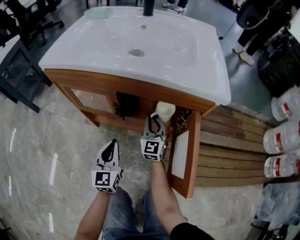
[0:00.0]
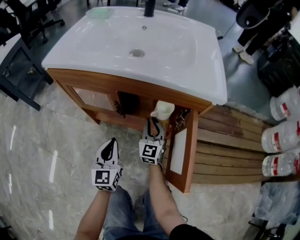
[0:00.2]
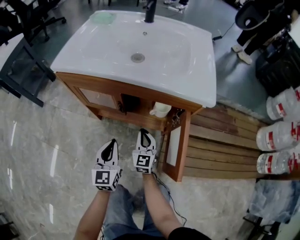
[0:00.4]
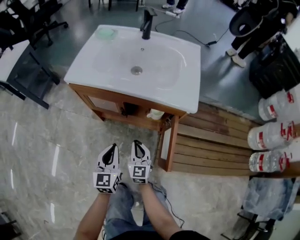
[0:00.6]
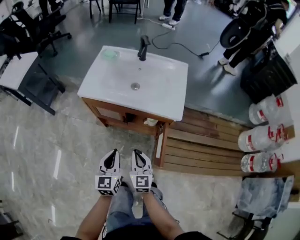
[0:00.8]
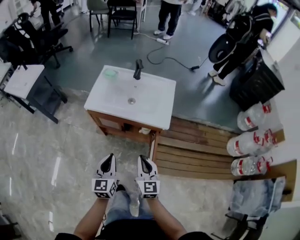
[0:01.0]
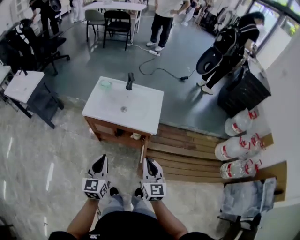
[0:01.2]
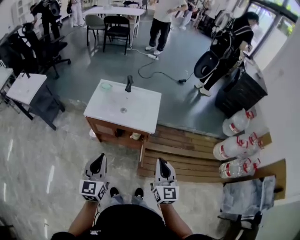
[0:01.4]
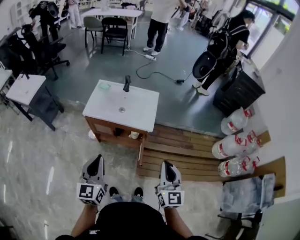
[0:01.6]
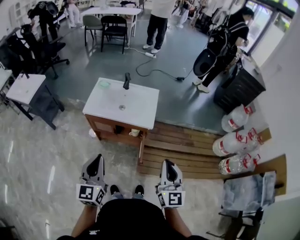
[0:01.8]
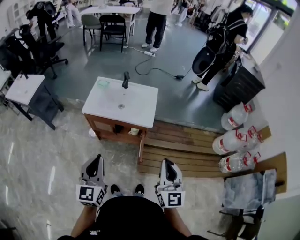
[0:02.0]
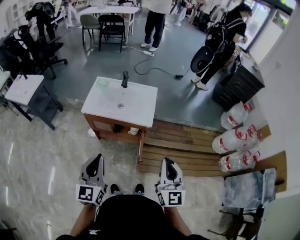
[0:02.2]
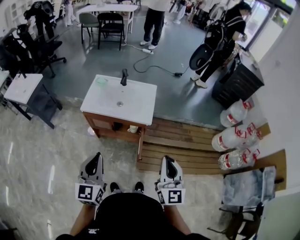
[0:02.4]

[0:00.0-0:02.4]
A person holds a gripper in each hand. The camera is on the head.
0:00.0 to 0:01.2: The left gripper is displaced upward by approximately 50 cm. Meanwhile the right gripper moves upward and backward, approximately 60 cm.
0:01.2 to 0:02.4: The right gripper heads upward, backward and to the right, covering roughly 20 cm; the left gripper travels upward and backward by some 15 cm.

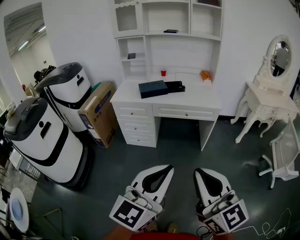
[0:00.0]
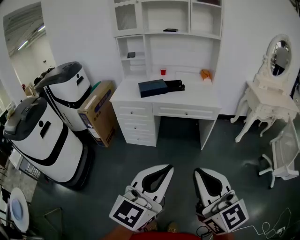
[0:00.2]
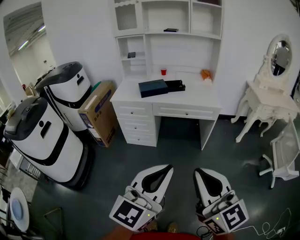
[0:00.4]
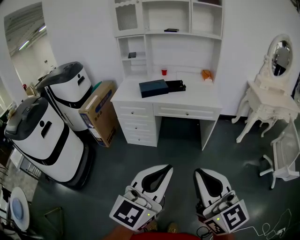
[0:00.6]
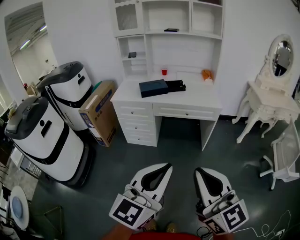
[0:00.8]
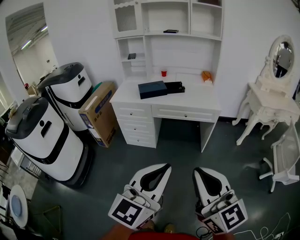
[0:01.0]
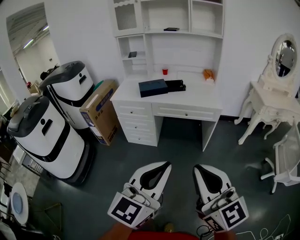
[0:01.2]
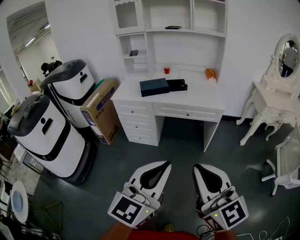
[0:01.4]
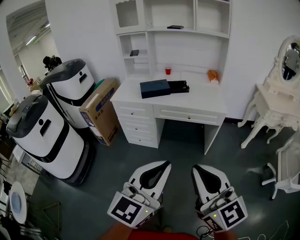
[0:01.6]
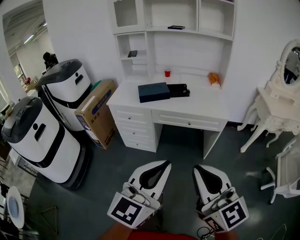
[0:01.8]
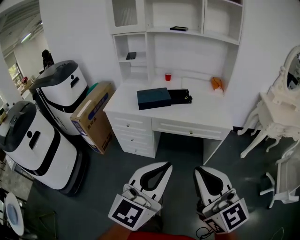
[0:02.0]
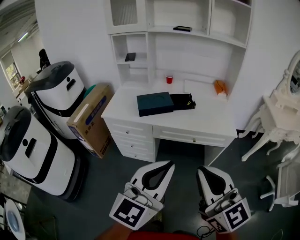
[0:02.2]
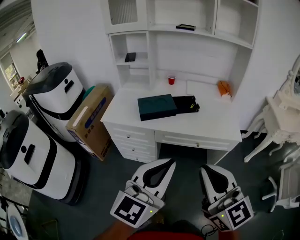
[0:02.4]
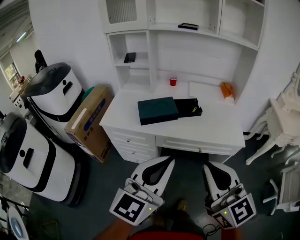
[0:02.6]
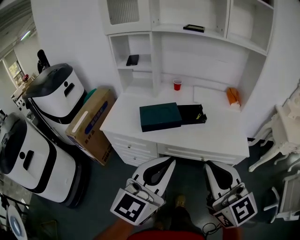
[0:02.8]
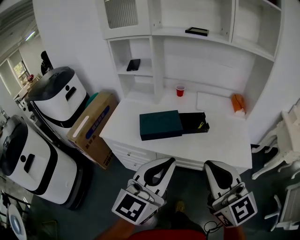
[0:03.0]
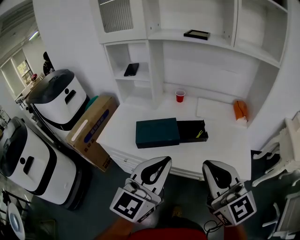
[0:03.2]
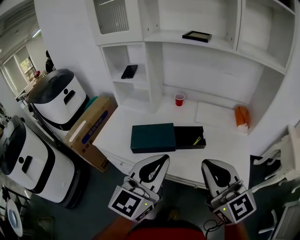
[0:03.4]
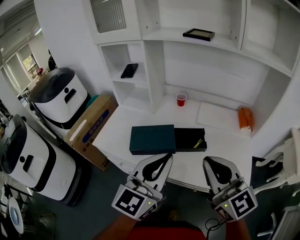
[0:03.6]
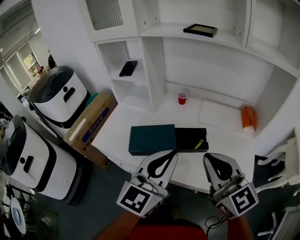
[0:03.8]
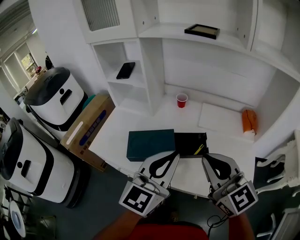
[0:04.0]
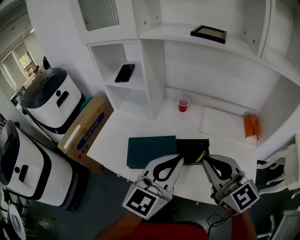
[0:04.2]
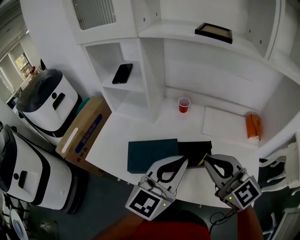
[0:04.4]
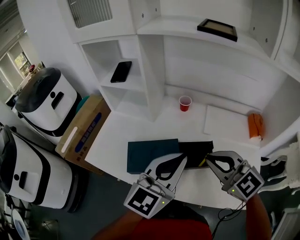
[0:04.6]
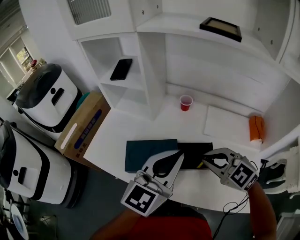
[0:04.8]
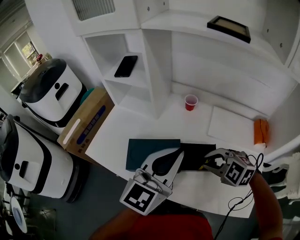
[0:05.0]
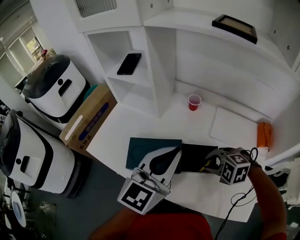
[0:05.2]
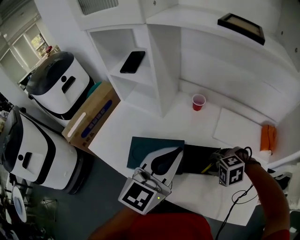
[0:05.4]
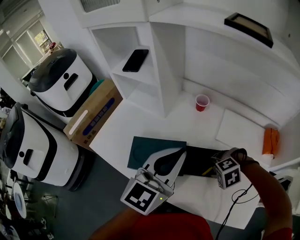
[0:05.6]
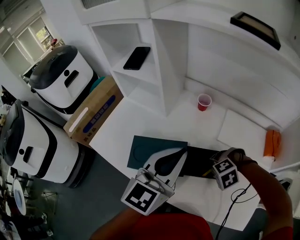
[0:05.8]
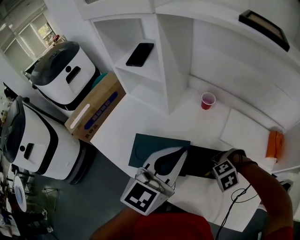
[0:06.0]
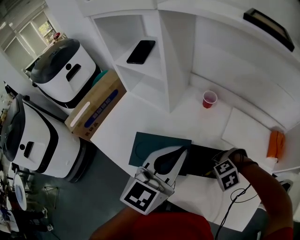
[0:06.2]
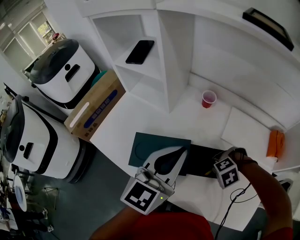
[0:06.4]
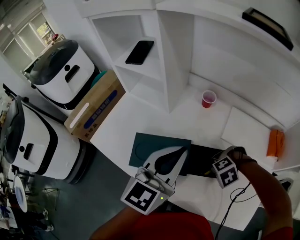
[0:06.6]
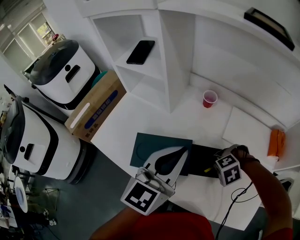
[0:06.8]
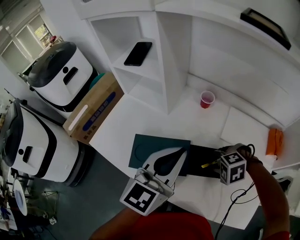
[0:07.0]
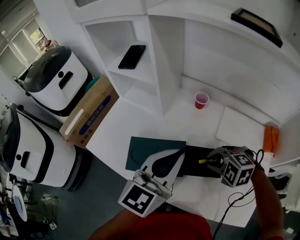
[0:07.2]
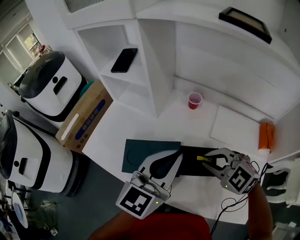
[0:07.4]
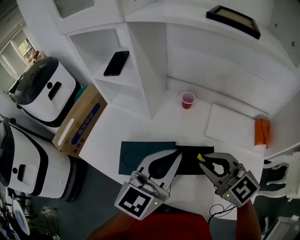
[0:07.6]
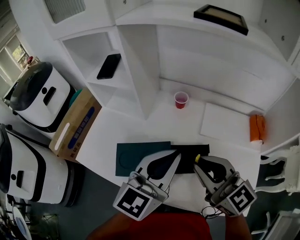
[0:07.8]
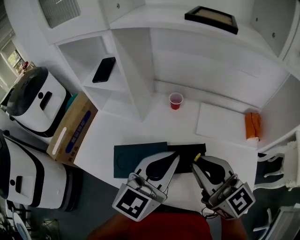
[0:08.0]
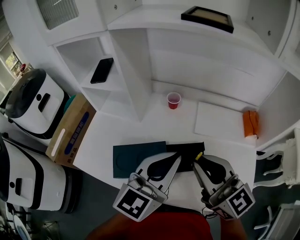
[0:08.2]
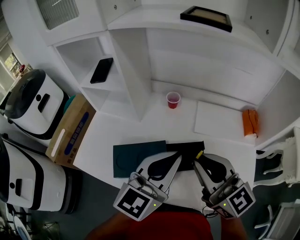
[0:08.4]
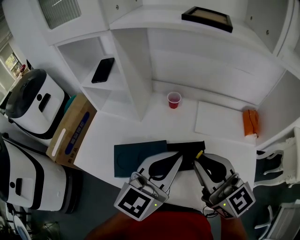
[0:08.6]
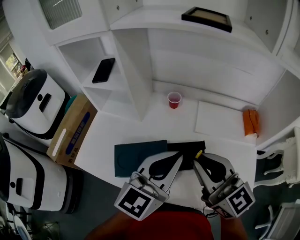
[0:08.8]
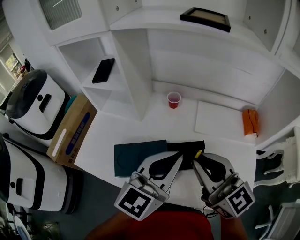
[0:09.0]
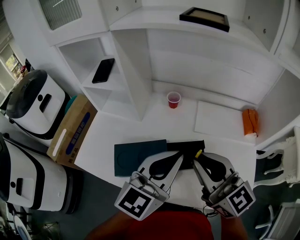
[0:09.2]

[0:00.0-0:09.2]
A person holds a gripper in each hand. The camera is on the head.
0:00.0 to 0:01.6: Both grippers travel together forward, approximately 10 cm.
0:01.6 to 0:03.0: The pair of grippers is taken forward, approximately 40 cm.
0:03.0 to 0:04.6: The grippers both shift forward by some 30 cm. The right gripper swivels approximately 30 degrees.
0:04.6 to 0:06.2: The right gripper is displaced downward by roughly 25 cm, tilts its fingers some 60 degrees downward, and opens its fingers; the left gripper ends up some 10 cm from where it was.
0:06.2 to 0:07.6: The right gripper is displaced upward by some 25 cm, and tips its fingers upward by roughly 60 degrees.
0:07.6 to 0:09.2: The right gripper shifts about 5 cm upward, and rotates approximately 30 degrees.

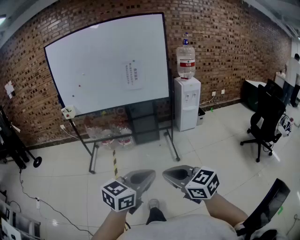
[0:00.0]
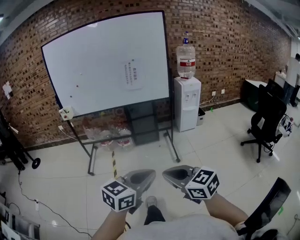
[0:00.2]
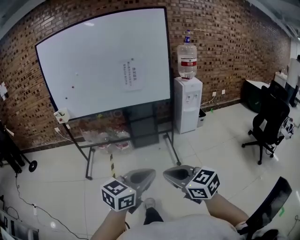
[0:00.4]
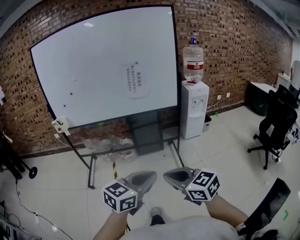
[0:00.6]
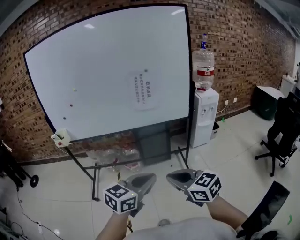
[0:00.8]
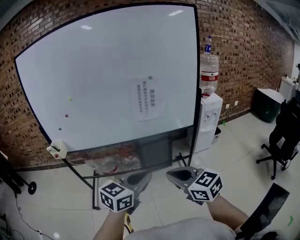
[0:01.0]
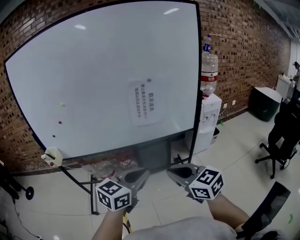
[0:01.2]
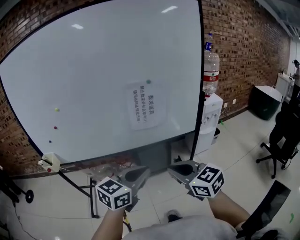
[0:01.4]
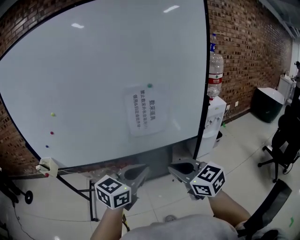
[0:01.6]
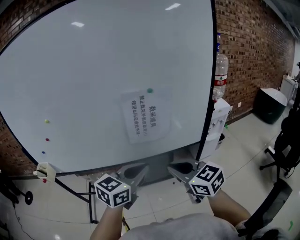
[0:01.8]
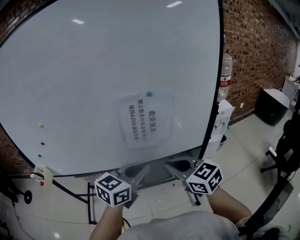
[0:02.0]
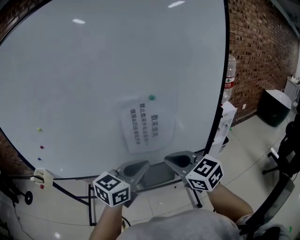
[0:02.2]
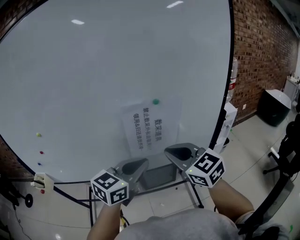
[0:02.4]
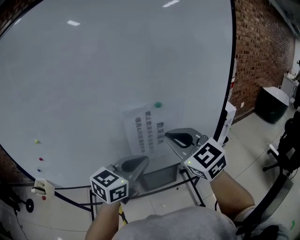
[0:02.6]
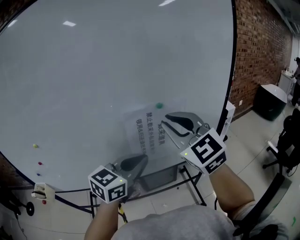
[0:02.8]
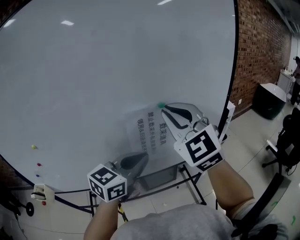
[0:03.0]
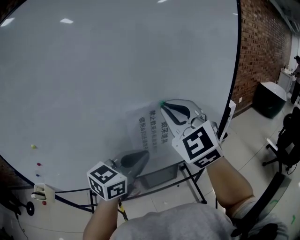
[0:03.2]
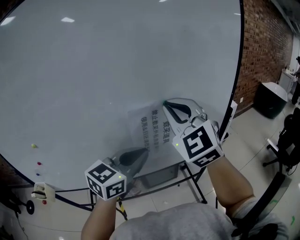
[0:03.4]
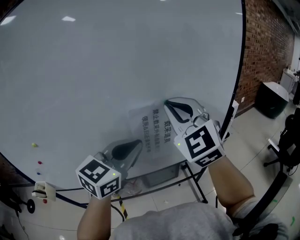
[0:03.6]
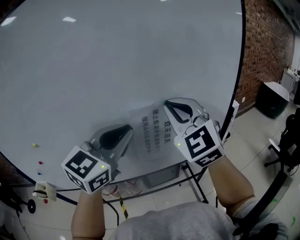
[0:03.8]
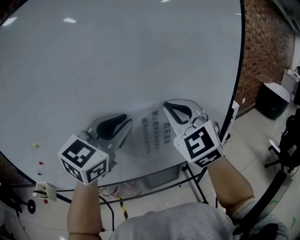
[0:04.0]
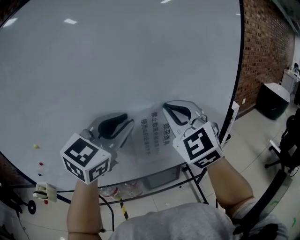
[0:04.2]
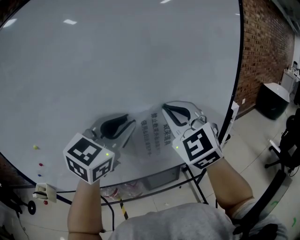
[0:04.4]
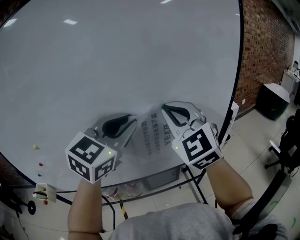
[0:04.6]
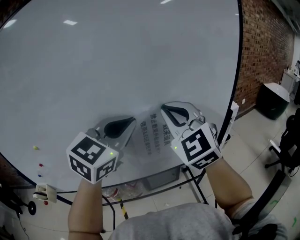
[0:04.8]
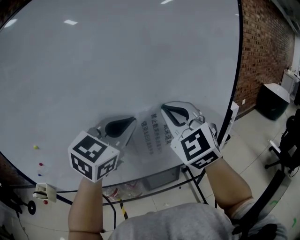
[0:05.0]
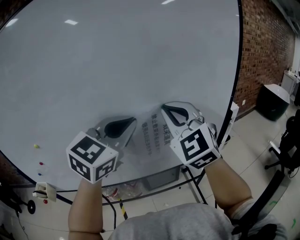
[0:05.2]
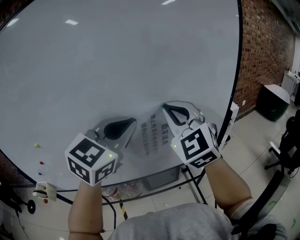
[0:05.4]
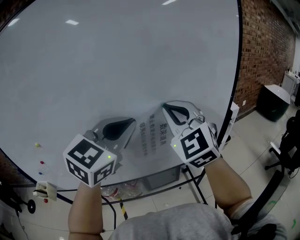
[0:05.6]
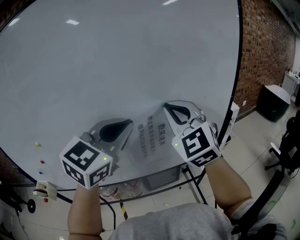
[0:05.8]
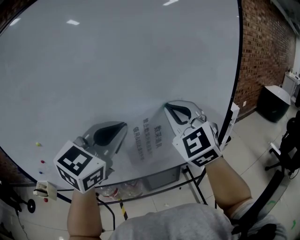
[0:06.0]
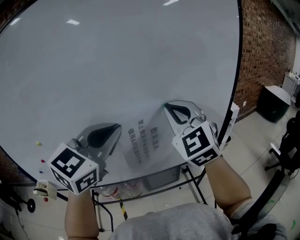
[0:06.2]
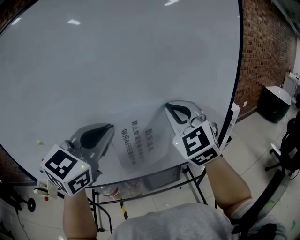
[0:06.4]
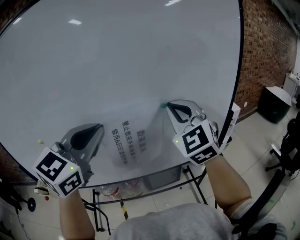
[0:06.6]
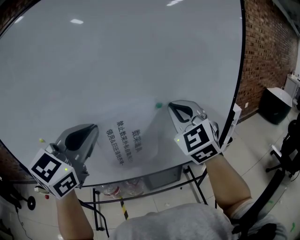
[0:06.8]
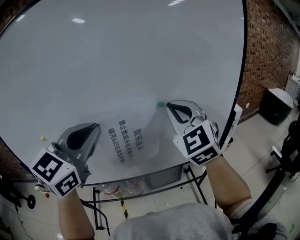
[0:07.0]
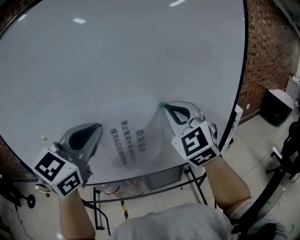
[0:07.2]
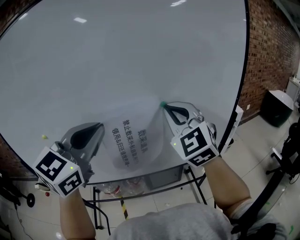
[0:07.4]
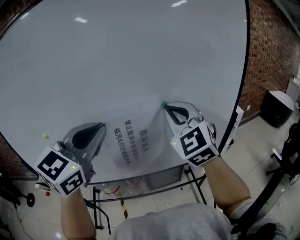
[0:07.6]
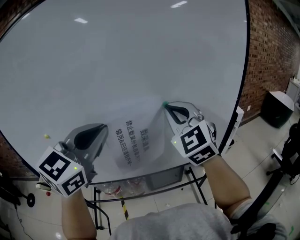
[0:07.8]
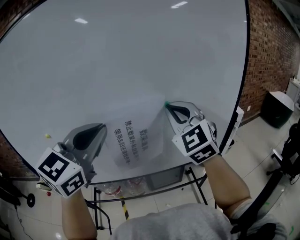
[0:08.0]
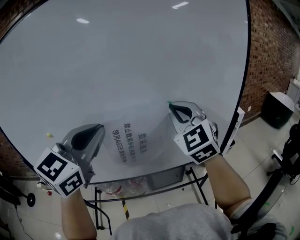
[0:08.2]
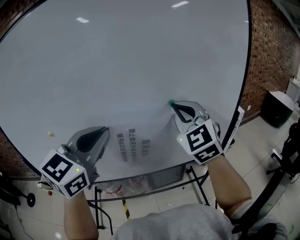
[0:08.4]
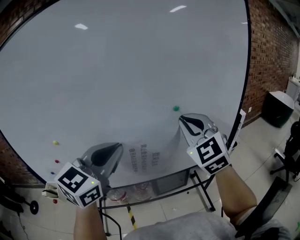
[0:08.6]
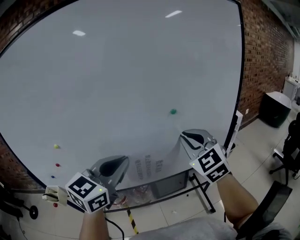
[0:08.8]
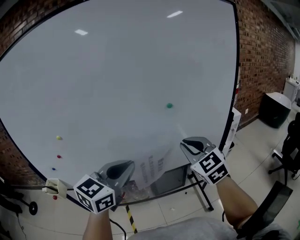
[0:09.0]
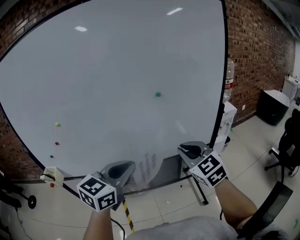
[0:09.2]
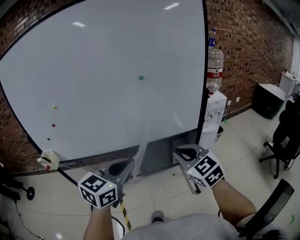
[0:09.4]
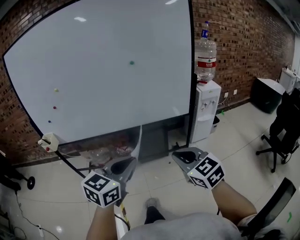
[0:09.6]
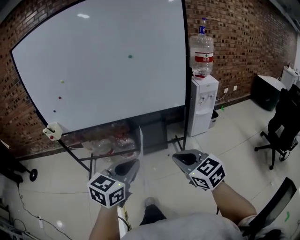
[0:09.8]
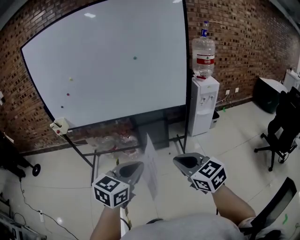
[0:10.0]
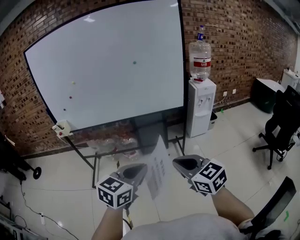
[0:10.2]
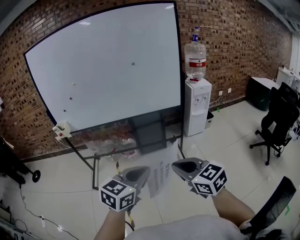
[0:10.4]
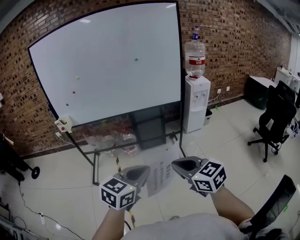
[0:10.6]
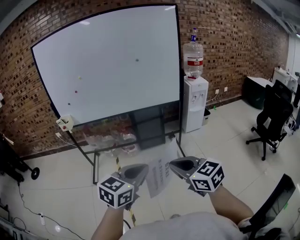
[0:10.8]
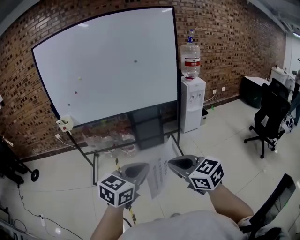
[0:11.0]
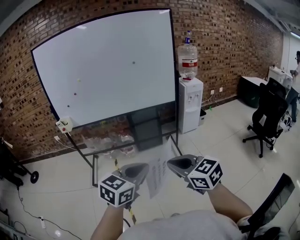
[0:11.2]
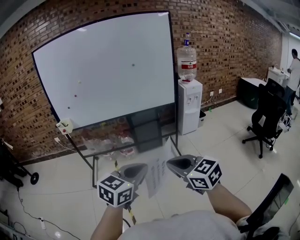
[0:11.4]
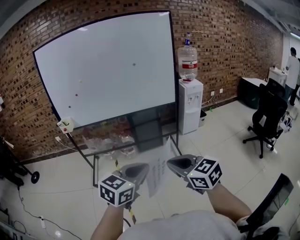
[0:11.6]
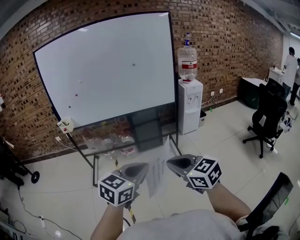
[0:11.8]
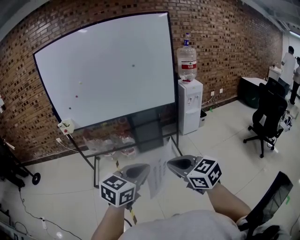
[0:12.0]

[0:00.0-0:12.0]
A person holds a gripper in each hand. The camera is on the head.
0:00.0 to 0:01.6: The two grippers travel together, forward, some 60 cm.
0:01.6 to 0:03.0: The left gripper goes about 20 cm forward. The right gripper goes some 30 cm forward and upward, and rotates approximately 40 degrees.
0:03.0 to 0:04.4: The left gripper heads upward, covering about 15 cm, and turns by approximately 30 degrees.
0:04.4 to 0:06.0: The grippers move only a little.
0:06.0 to 0:07.6: The left gripper shifts some 10 cm to the left.
0:07.6 to 0:09.0: The right gripper shifts roughly 15 cm downward, backward and to the right, while the left gripper goes approximately 15 cm downward and backward.
0:09.0 to 0:10.4: The two grippers travel together, backward, approximately 50 cm. The right gripper swivels about 30 degrees.
0:10.4 to 0:12.0: Both grippers move backward, some 10 cm.
